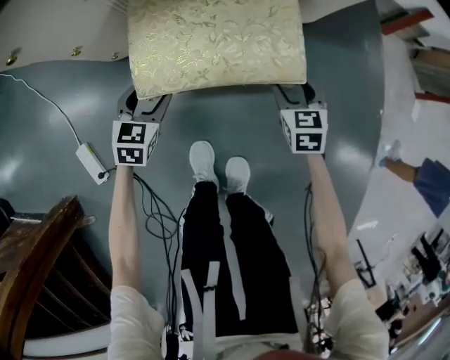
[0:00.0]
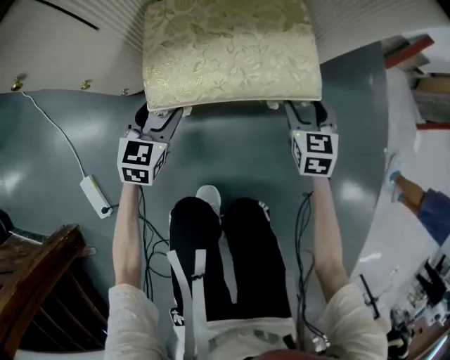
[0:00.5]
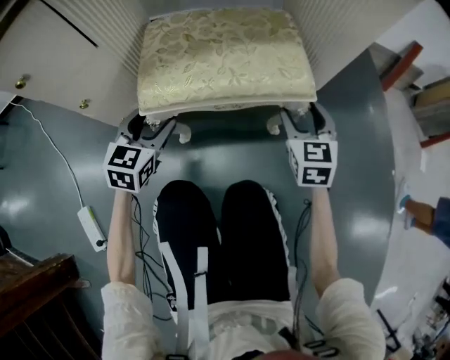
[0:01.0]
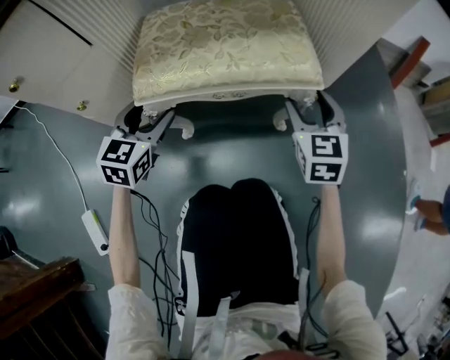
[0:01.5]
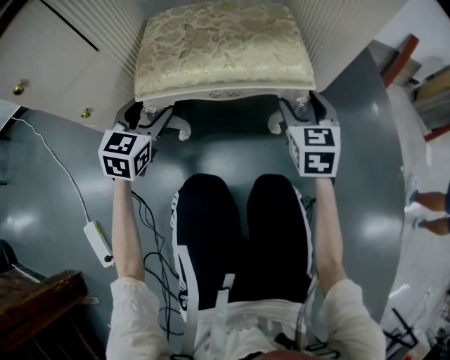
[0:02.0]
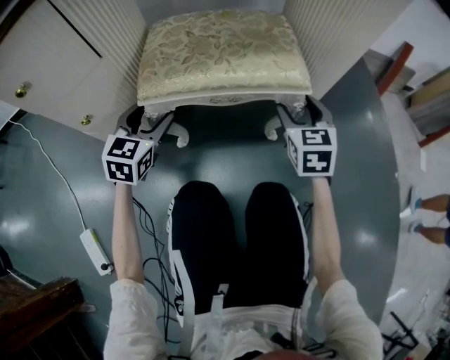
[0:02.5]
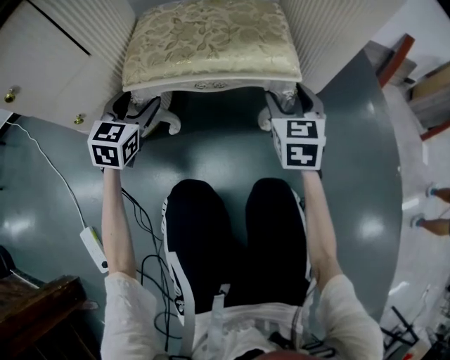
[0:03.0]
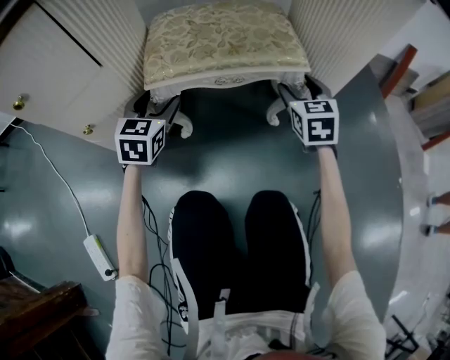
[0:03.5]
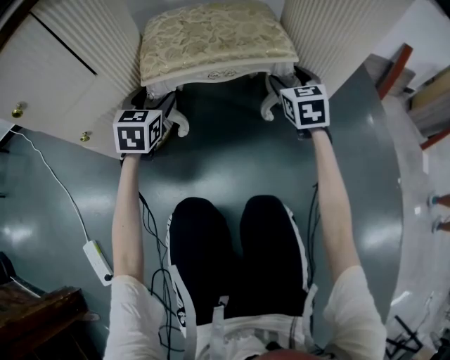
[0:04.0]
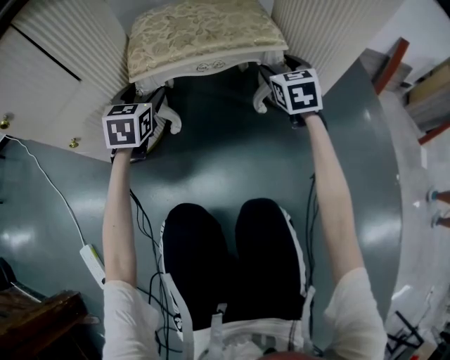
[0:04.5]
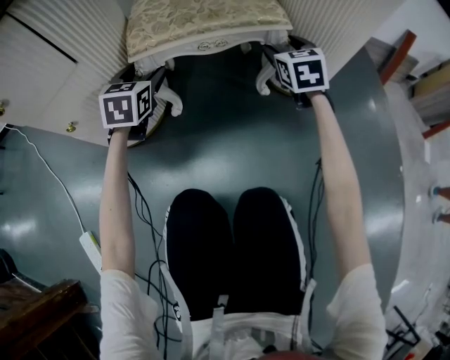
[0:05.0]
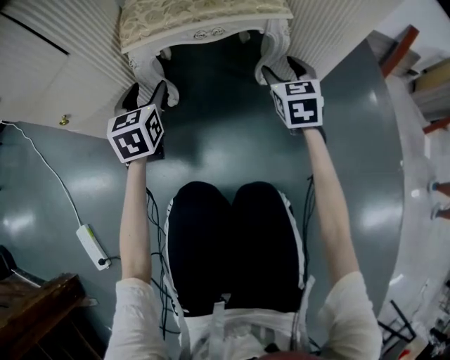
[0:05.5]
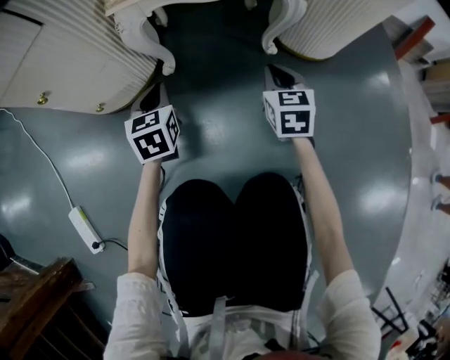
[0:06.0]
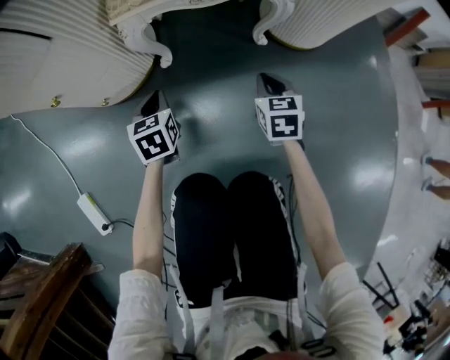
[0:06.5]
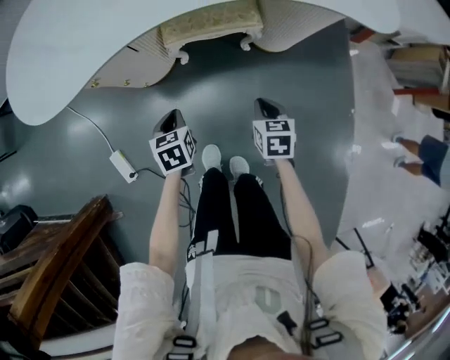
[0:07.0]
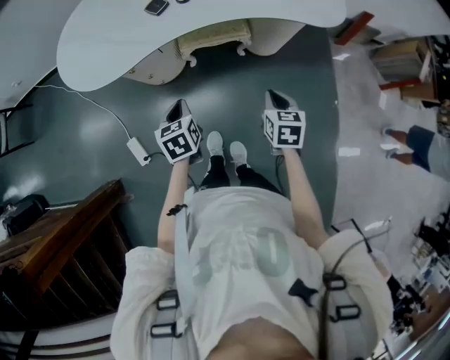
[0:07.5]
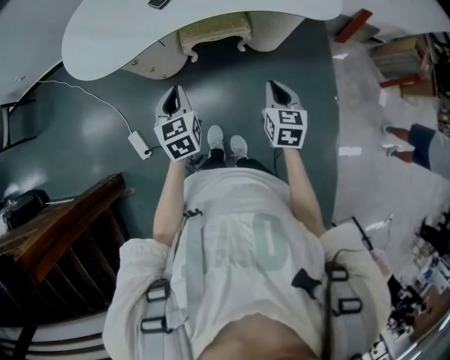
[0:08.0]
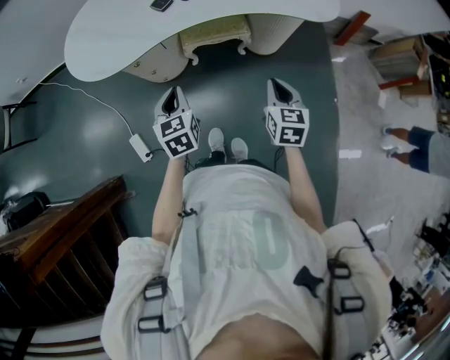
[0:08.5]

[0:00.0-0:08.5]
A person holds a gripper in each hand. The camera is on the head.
0:00.0 to 0:02.0: The right gripper swivels roughly 20 degrees.
0:02.0 to 0:04.0: The grippers stay close to where they were, moving slightly.
0:04.0 to 0:06.5: Both grippers travel together backward and downward, approximately 20 cm. The right gripper closes up. The left gripper turns by roughly 30 degrees, and closes.
0:06.5 to 0:08.5: Both grippers travel together upward, approximately 50 cm.

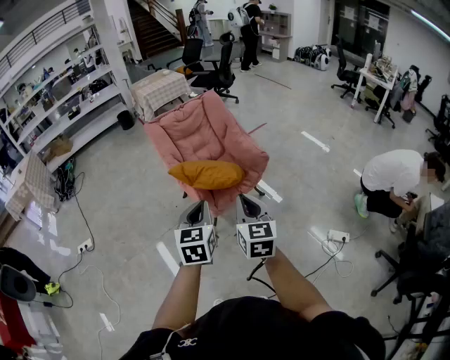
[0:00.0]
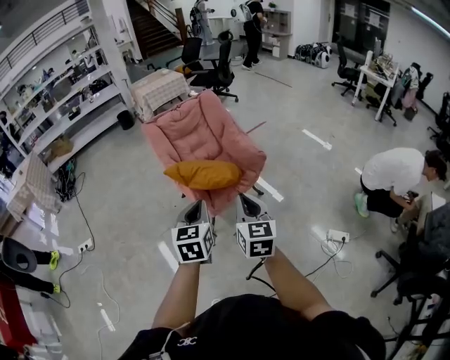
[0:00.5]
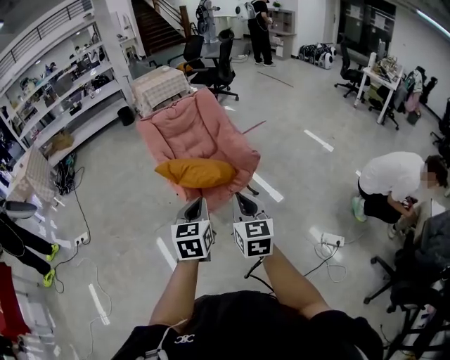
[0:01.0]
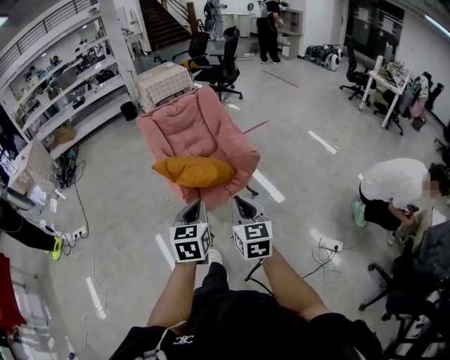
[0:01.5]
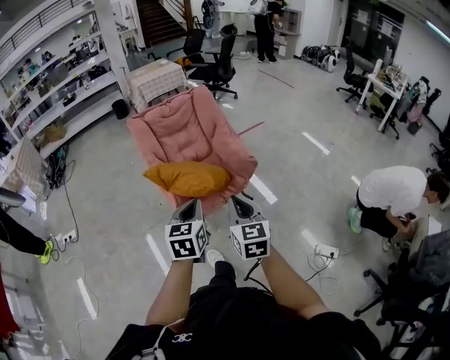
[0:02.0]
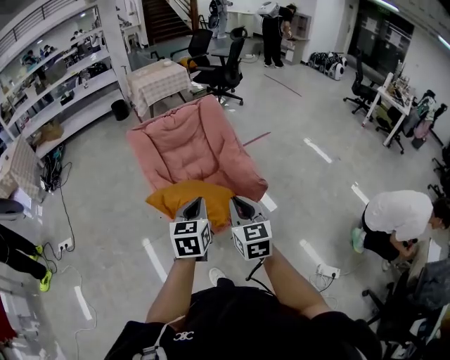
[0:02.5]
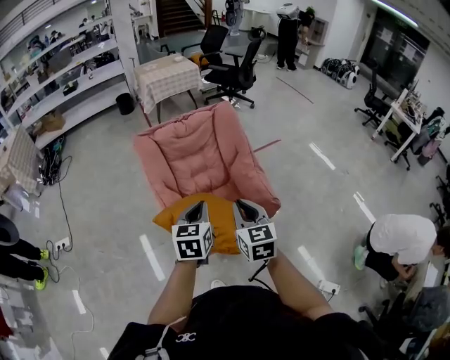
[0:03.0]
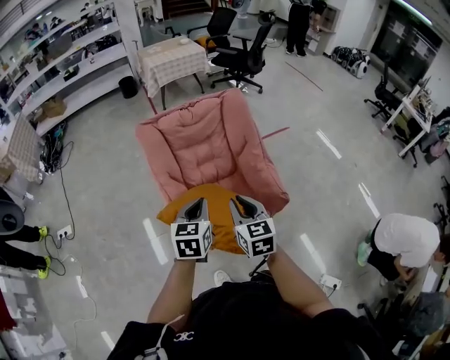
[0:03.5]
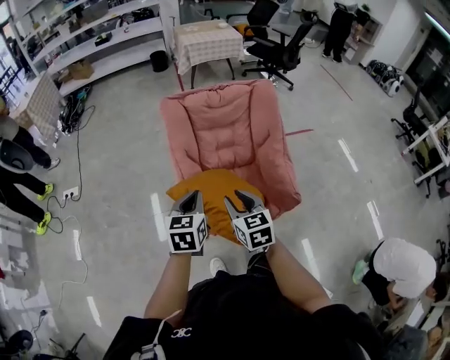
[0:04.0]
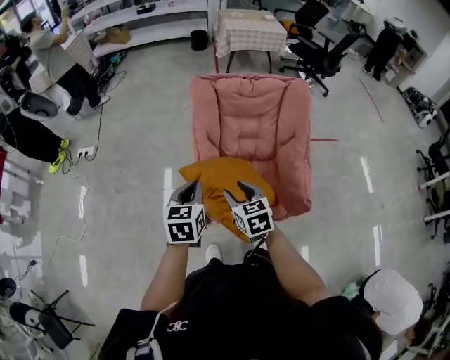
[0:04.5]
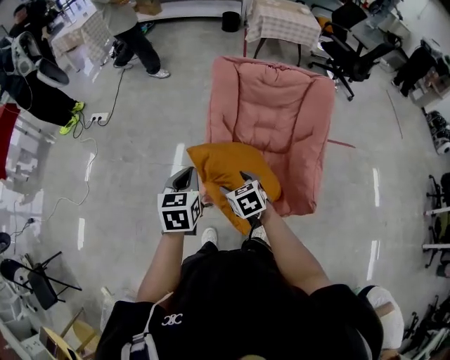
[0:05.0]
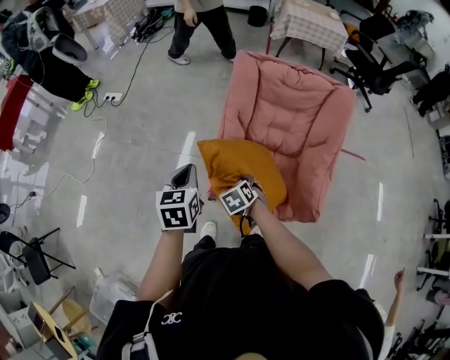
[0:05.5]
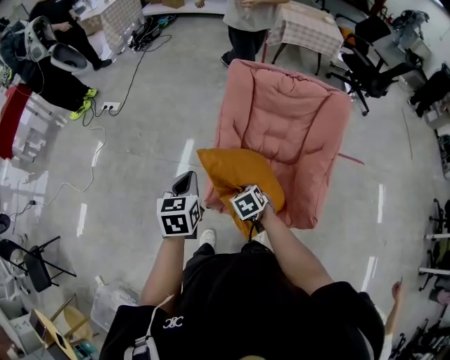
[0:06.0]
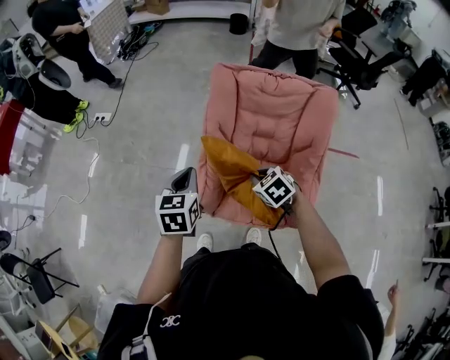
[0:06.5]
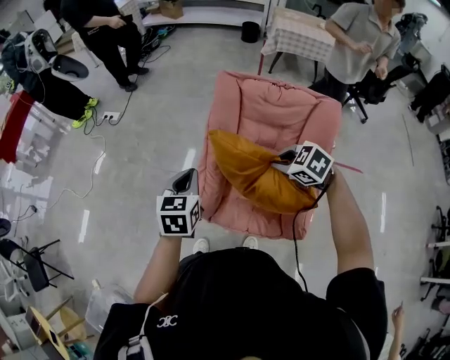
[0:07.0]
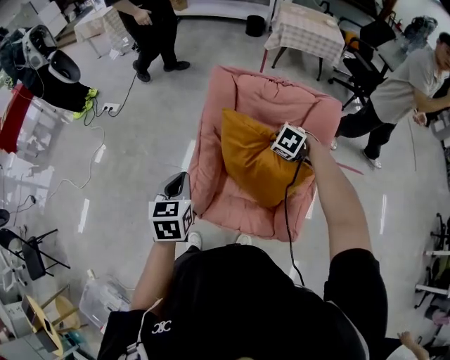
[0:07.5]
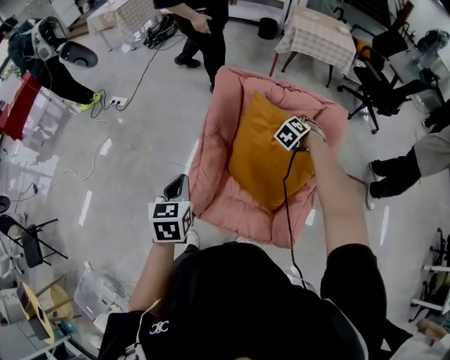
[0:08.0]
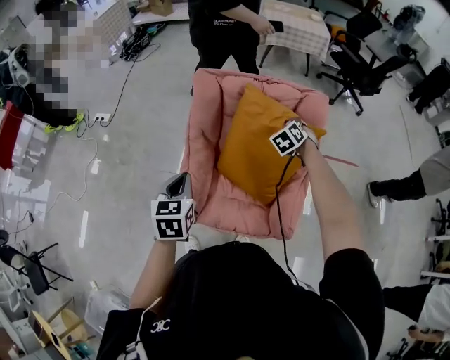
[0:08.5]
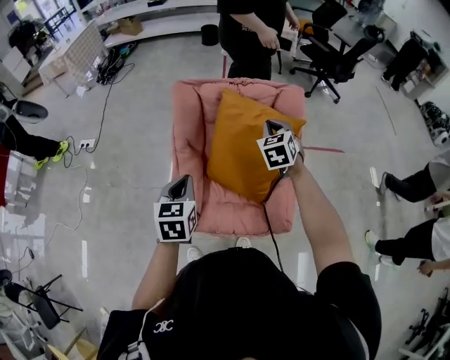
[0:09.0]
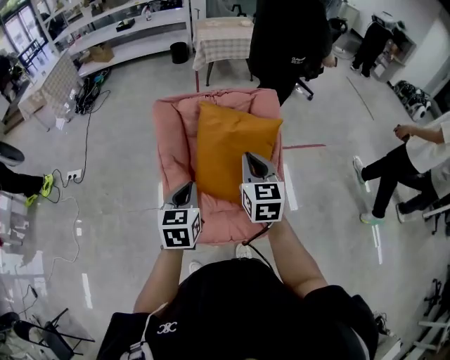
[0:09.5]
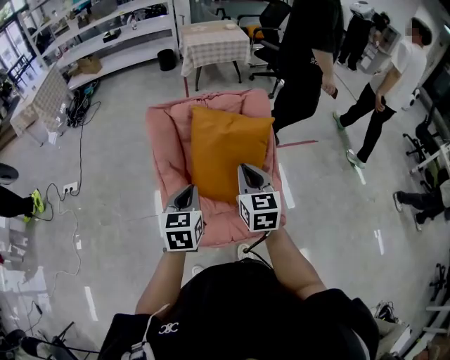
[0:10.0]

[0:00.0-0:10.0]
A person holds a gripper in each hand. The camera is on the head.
0:00.0 to 0:02.0: The grippers both shift to the right, forward and downward by about 15 cm.
0:02.0 to 0:04.0: Both grippers travel together forward and to the left, approximately 35 cm. The right gripper rotates approximately 30 degrees.
0:04.0 to 0:06.0: The left gripper changes place by about 10 cm, and swivels about 30 degrees, while the right gripper goes about 15 cm downward, angles its fingers downward, by about 30 degrees, and opens and closes again.
0:06.0 to 0:08.0: The left gripper shifts by some 10 cm, while the right gripper moves approximately 40 cm, and rotates some 40 degrees.
0:08.0 to 0:10.0: The right gripper travels backward and upward by some 35 cm, rolls clockwise, seen from behind, by approximately 60 degrees, and closes. Meanwhile the left gripper shifts roughly 10 cm to the right, and changes its angle by some 30 degrees.

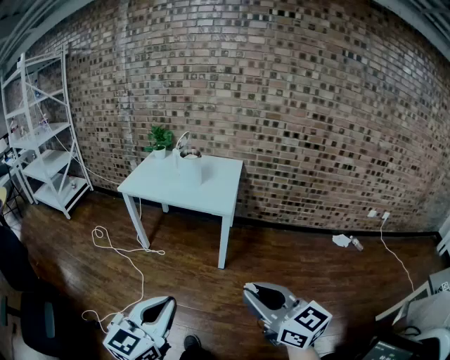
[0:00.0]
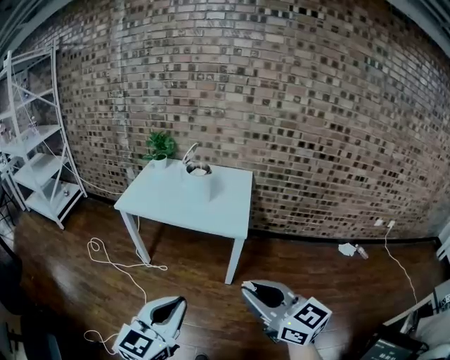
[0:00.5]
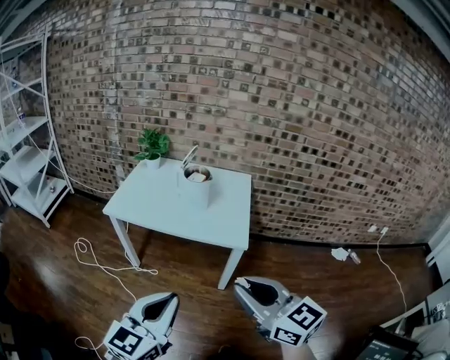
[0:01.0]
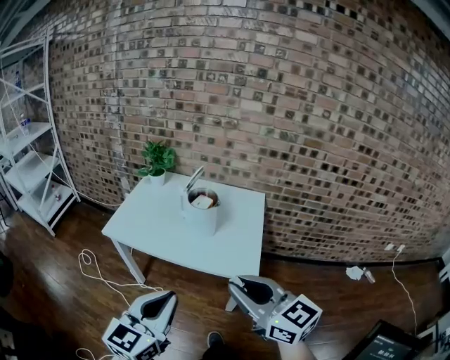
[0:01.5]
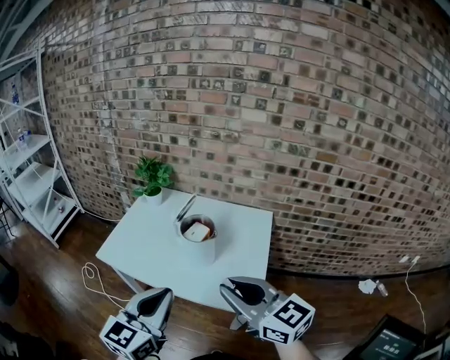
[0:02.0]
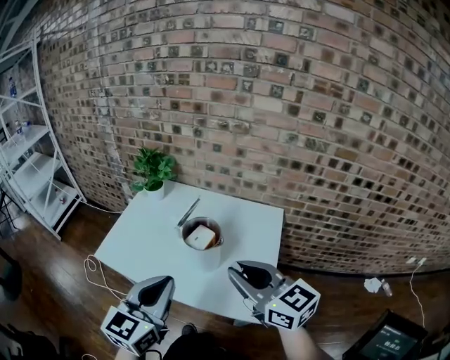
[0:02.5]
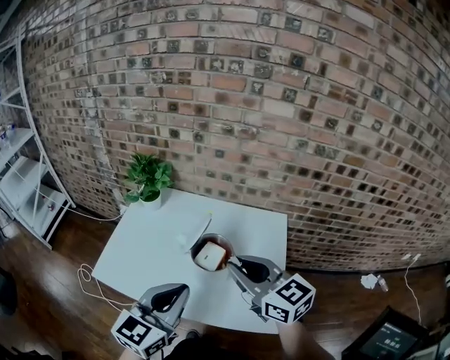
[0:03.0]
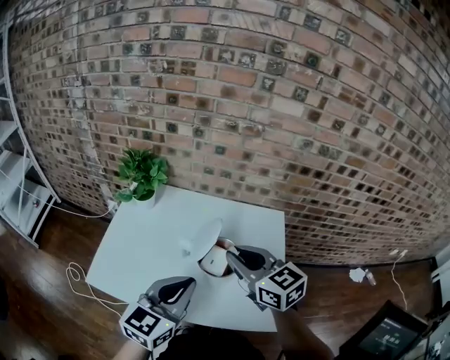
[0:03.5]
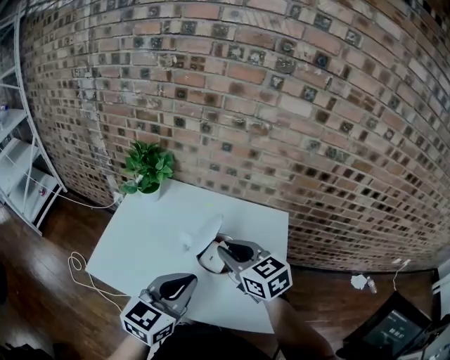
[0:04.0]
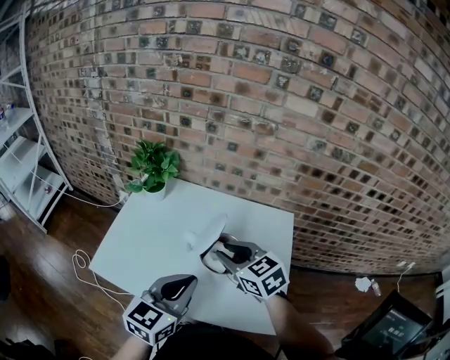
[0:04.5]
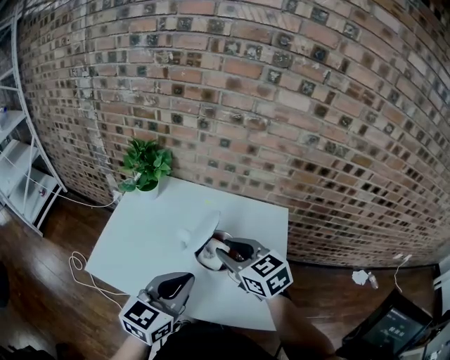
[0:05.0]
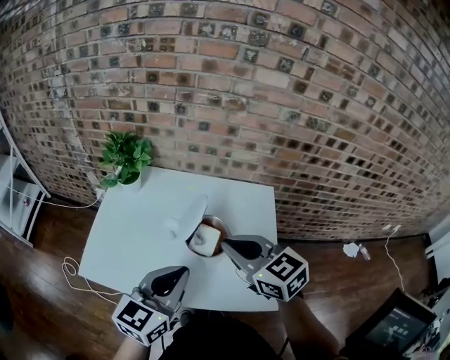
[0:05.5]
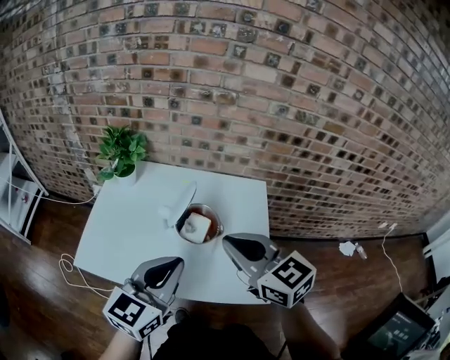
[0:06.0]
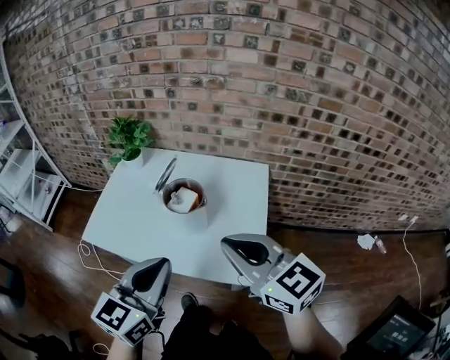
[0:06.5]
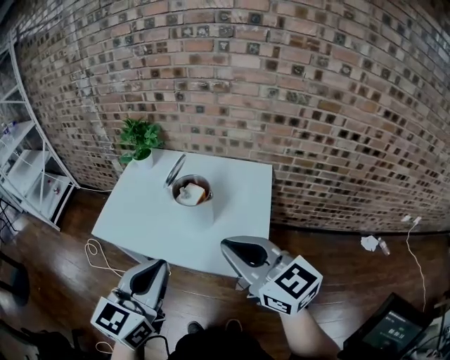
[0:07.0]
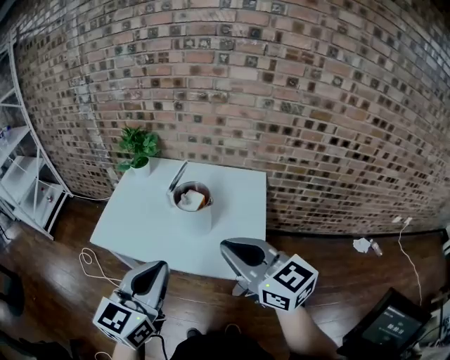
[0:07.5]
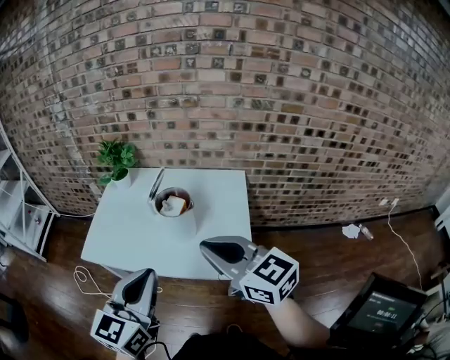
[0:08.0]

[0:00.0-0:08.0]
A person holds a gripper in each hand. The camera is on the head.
0:00.0 to 0:02.0: The pair of grippers is taken forward, approximately 60 cm.
0:02.0 to 0:04.0: Both grippers travel together forward, some 25 cm. The right gripper swivels some 20 degrees.
0:04.0 to 0:06.0: The right gripper travels backward and upward by some 10 cm.
0:06.0 to 0:08.0: The two grippers go approximately 15 cm backward.
